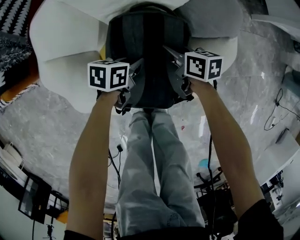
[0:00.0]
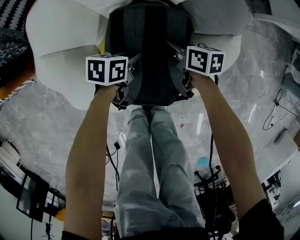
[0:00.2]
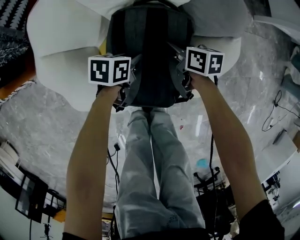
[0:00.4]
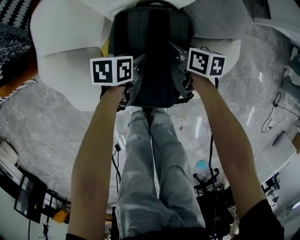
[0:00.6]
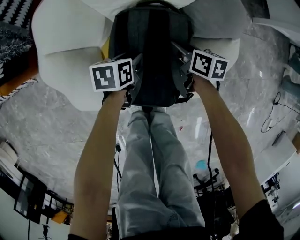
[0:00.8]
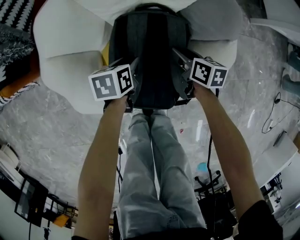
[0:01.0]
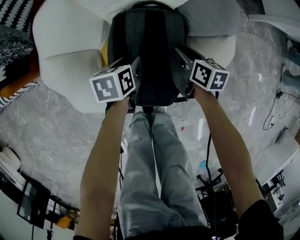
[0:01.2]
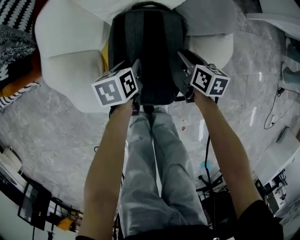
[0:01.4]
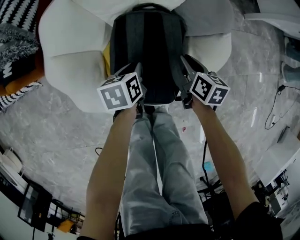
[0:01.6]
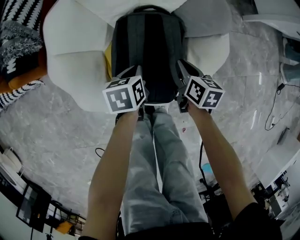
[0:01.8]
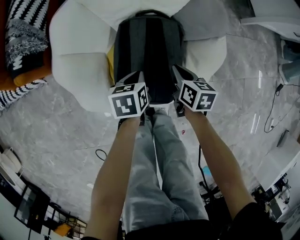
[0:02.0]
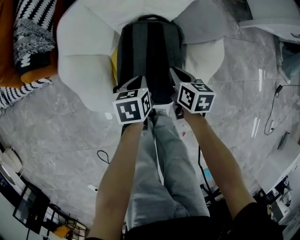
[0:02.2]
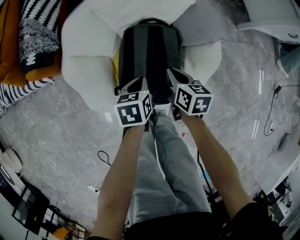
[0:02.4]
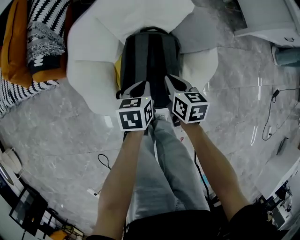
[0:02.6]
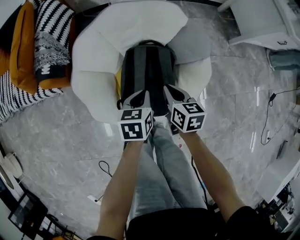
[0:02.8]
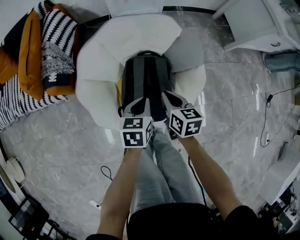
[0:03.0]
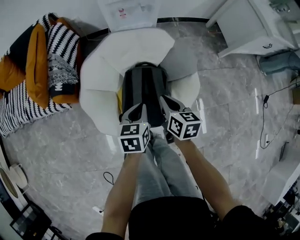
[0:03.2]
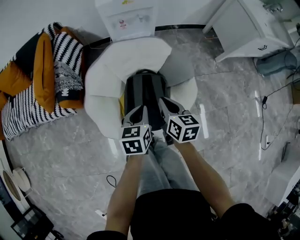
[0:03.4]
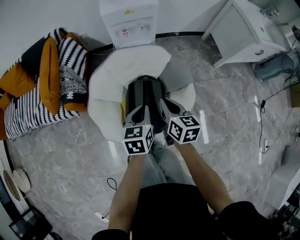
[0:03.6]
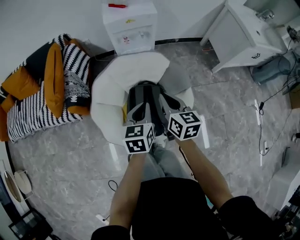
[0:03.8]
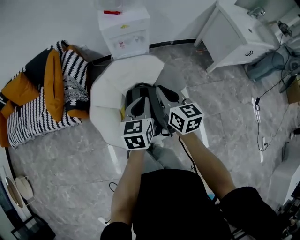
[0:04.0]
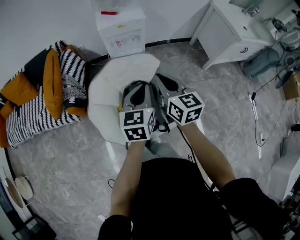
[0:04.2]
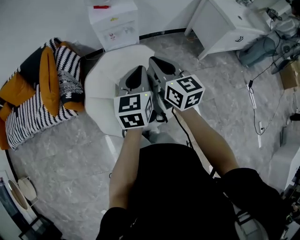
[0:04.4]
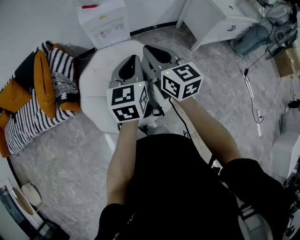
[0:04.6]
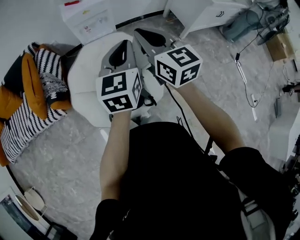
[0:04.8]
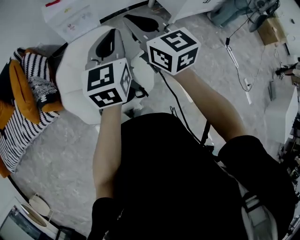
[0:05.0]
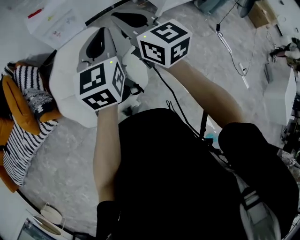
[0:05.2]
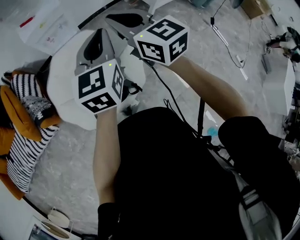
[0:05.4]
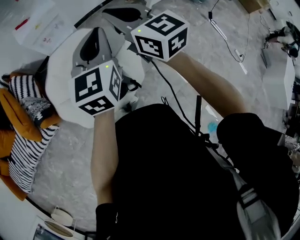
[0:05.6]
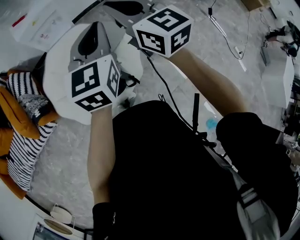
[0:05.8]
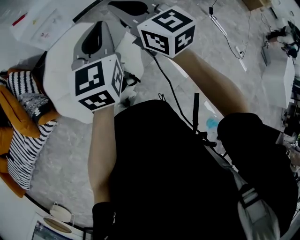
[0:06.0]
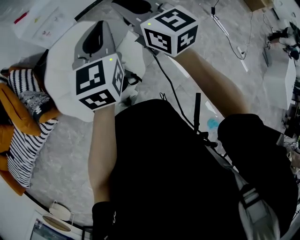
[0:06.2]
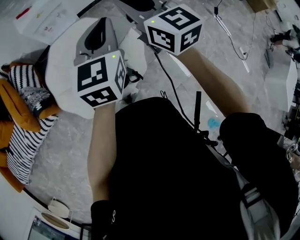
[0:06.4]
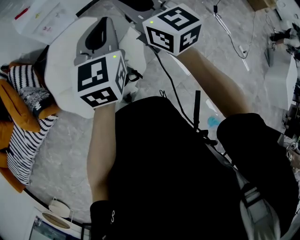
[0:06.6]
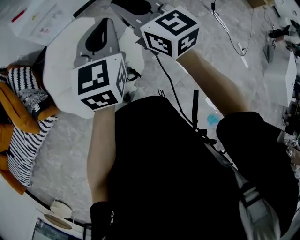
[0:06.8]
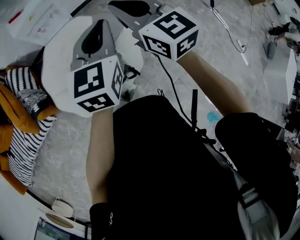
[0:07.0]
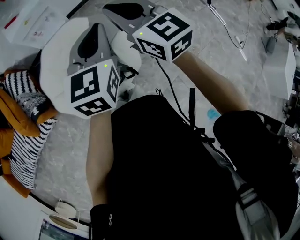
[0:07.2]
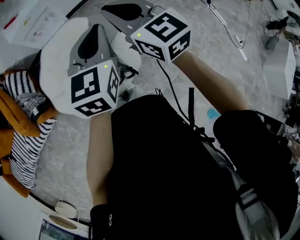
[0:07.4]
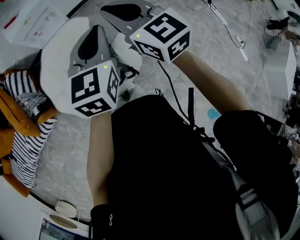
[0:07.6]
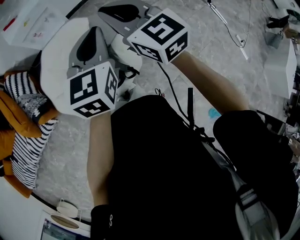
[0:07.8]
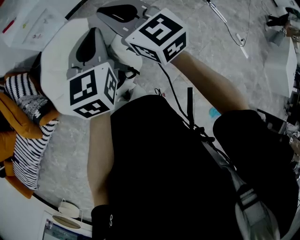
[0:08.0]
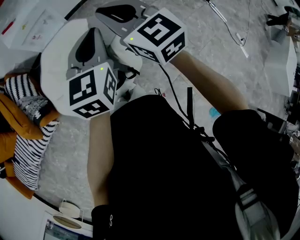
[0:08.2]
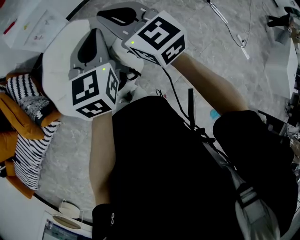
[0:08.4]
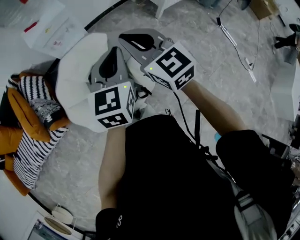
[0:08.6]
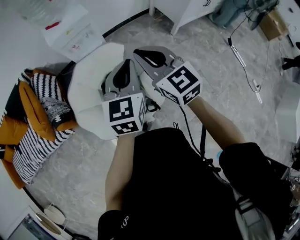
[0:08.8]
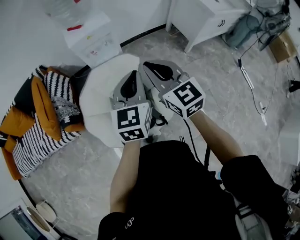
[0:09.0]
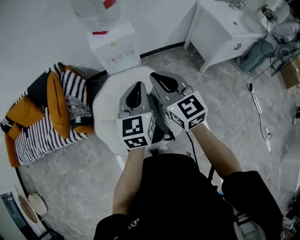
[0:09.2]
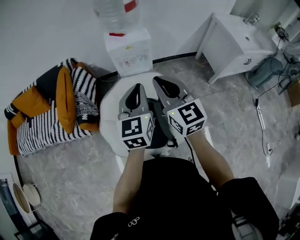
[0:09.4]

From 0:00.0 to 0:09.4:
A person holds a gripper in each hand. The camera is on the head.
From 0:00.0 to 0:01.6: The left gripper changes place by about 5 cm, turns by roughly 30 degrees, and opens and closes again. Meanwhile the right gripper moves to the right and backward, roughly 10 cm, and swivels some 20 degrees.
From 0:01.6 to 0:03.2: Both grippers travel together upward, about 30 cm. The left gripper changes its angle by about 20 degrees.
From 0:03.2 to 0:04.8: Both grippers move upward, approximately 35 cm. The right gripper swivels approximately 40 degrees. Meanwhile the left gripper tips its fingers upward by some 30 degrees.
From 0:04.8 to 0:06.2: Both grippers travel together to the right, approximately 5 cm.
From 0:06.2 to 0:07.8: The grippers make only small movements.
From 0:07.8 to 0:09.4: Both grippers travel together to the left and forward, approximately 15 cm. The left gripper turns by some 30 degrees.

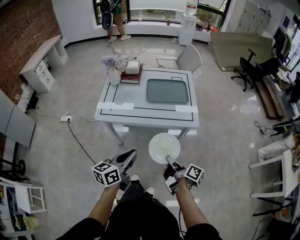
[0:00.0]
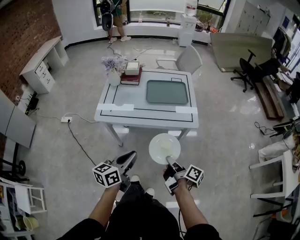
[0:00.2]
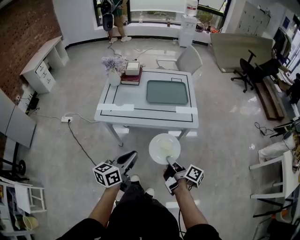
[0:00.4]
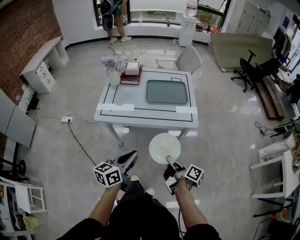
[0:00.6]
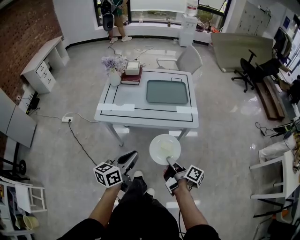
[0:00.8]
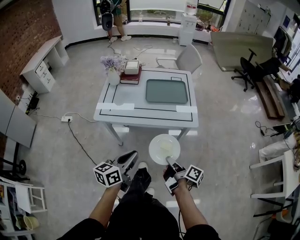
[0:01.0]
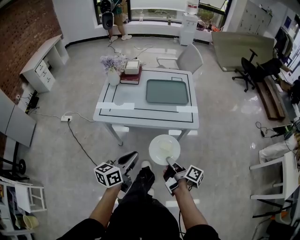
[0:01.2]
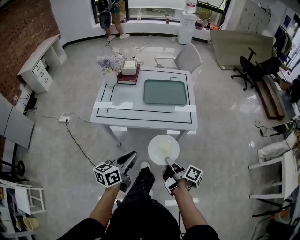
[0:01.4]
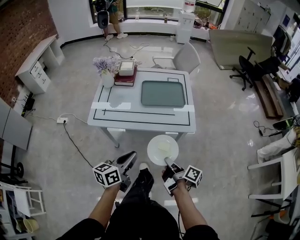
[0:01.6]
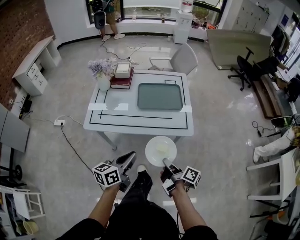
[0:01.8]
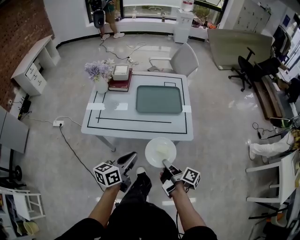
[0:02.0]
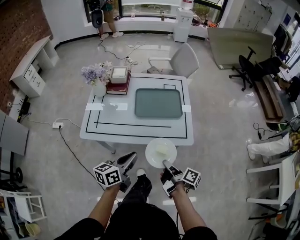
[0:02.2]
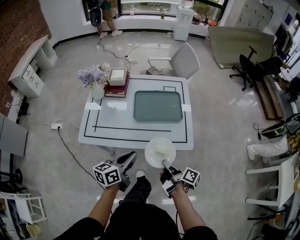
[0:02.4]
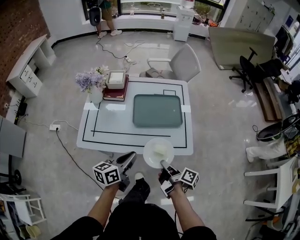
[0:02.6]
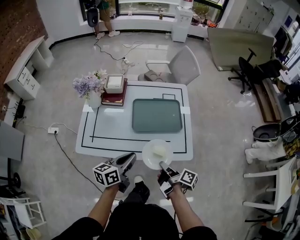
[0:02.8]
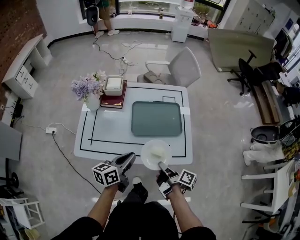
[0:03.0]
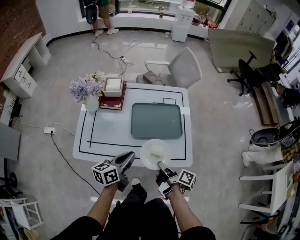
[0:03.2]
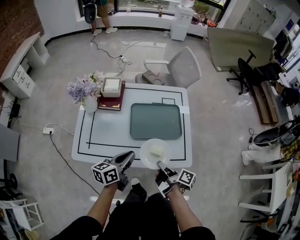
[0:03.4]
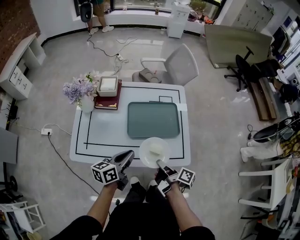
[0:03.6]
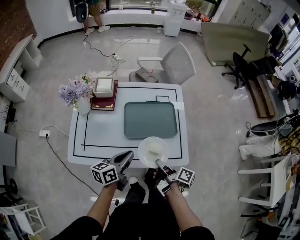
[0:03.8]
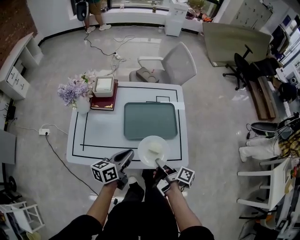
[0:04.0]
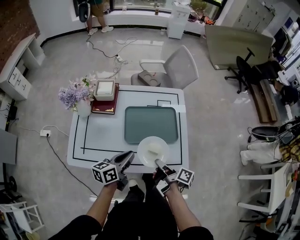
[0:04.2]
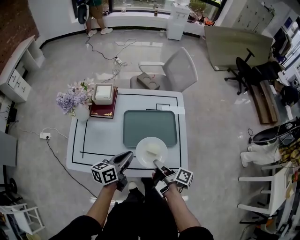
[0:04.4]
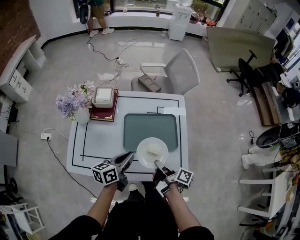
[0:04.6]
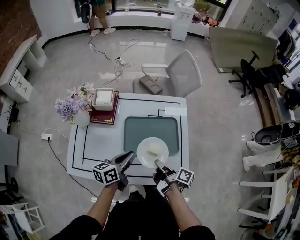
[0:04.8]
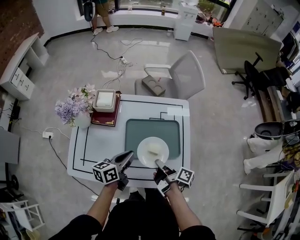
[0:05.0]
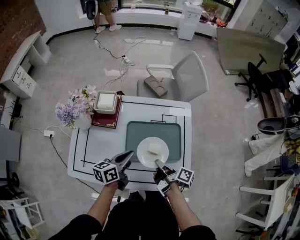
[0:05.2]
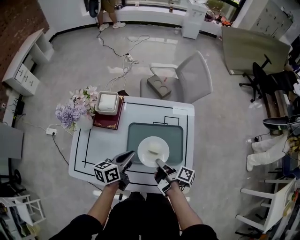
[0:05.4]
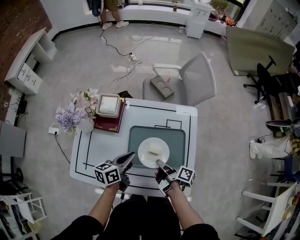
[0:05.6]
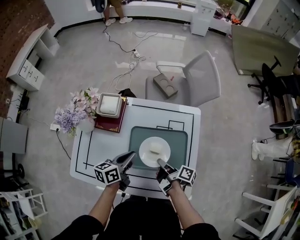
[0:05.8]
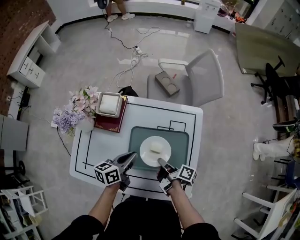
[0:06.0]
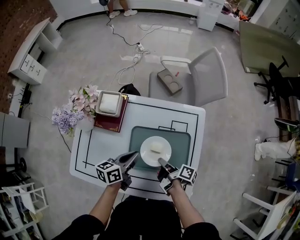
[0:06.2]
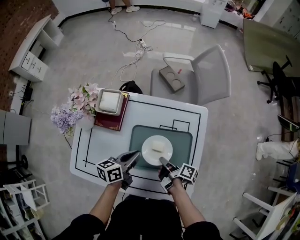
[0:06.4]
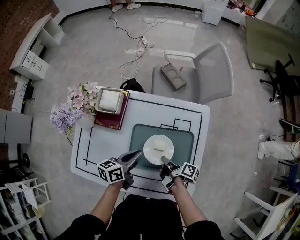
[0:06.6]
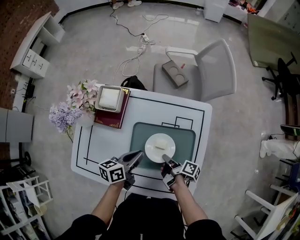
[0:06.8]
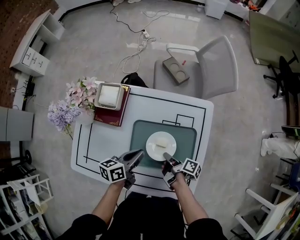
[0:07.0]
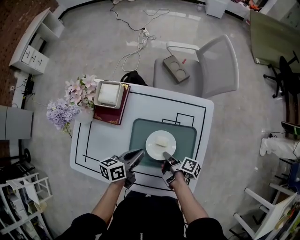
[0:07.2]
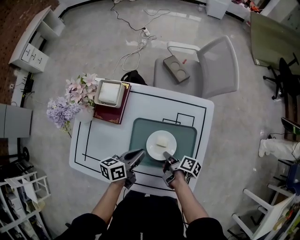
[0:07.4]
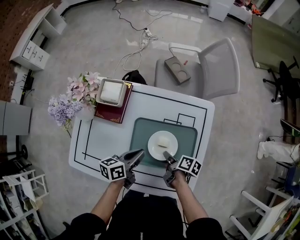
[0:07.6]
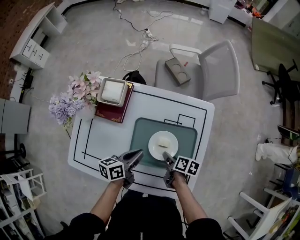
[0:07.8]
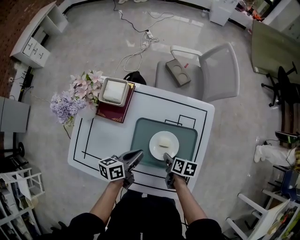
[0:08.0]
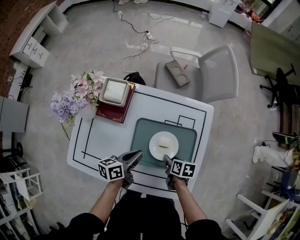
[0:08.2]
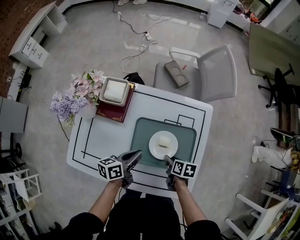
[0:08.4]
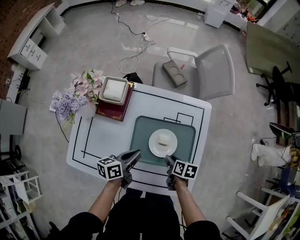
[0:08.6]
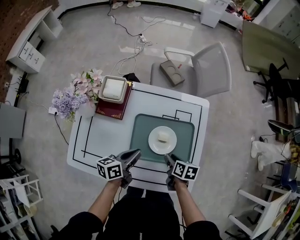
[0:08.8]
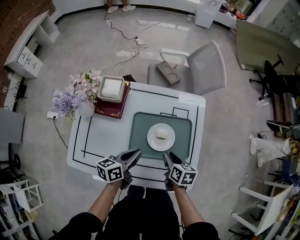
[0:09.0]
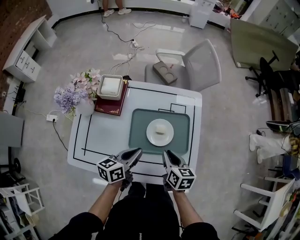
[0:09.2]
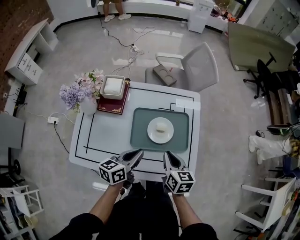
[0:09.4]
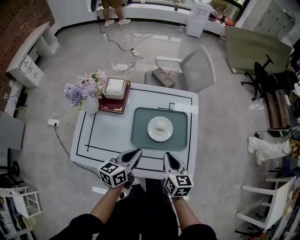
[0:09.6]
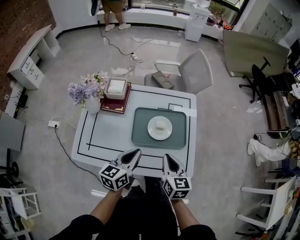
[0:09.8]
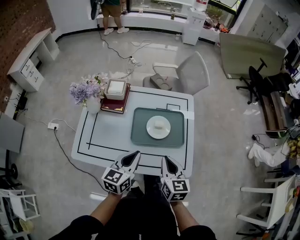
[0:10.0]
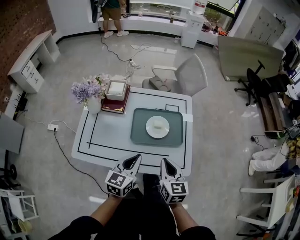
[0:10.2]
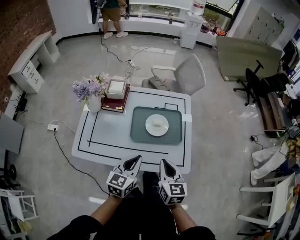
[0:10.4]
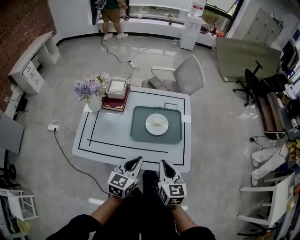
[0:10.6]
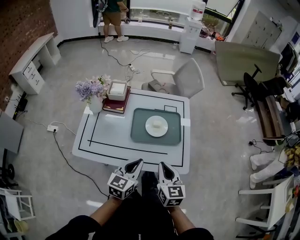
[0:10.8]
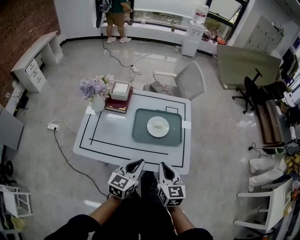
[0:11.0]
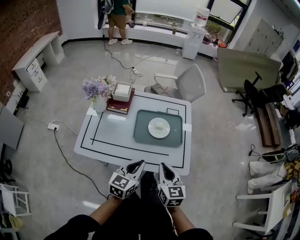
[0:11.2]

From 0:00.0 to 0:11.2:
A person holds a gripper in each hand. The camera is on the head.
From 0:00.0 to 0:01.6: The left gripper changes place by approximately 5 cm.
From 0:01.6 to 0:03.2: The left gripper moves about 25 cm.
From 0:03.2 to 0:04.8: The left gripper shifts by approximately 15 cm.
From 0:04.8 to 0:06.4: The left gripper moves some 15 cm.
From 0:08.0 to 0:09.6: The left gripper changes place by about 15 cm, and swivels approximately 20 degrees.
From 0:09.6 to 0:11.2: The left gripper shifts by approximately 15 cm, and swivels approximately 20 degrees.

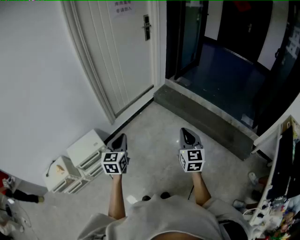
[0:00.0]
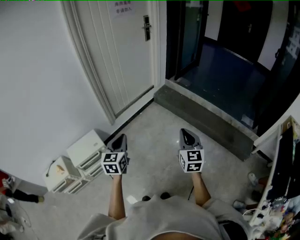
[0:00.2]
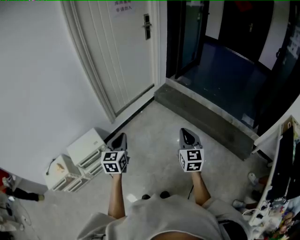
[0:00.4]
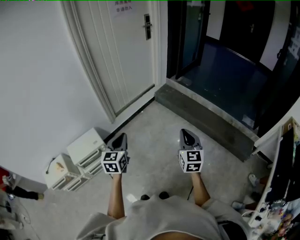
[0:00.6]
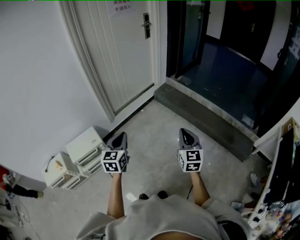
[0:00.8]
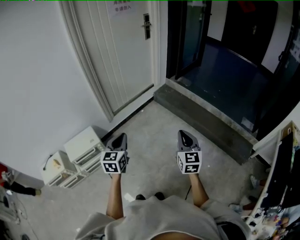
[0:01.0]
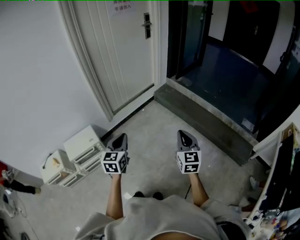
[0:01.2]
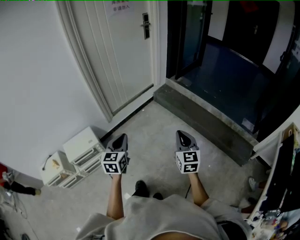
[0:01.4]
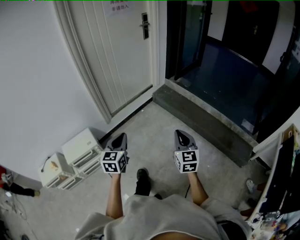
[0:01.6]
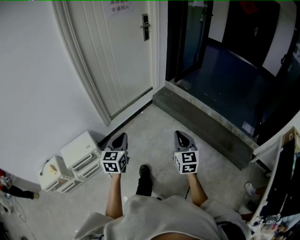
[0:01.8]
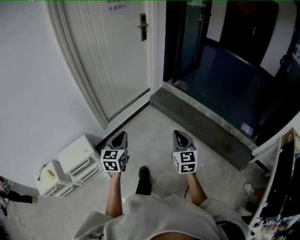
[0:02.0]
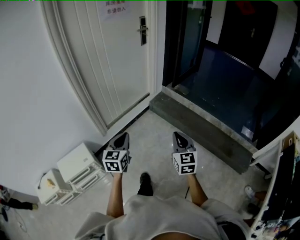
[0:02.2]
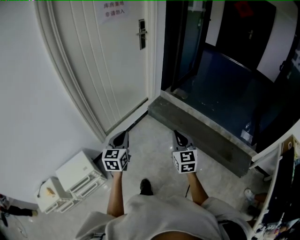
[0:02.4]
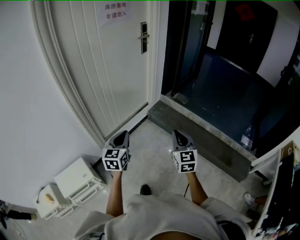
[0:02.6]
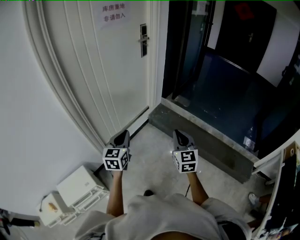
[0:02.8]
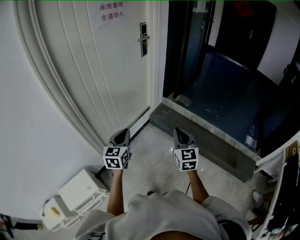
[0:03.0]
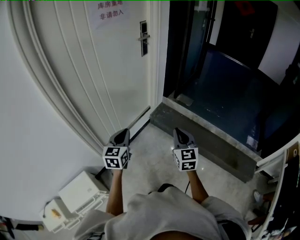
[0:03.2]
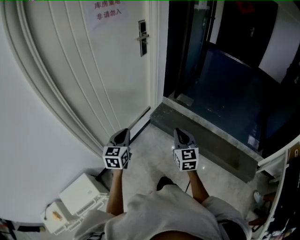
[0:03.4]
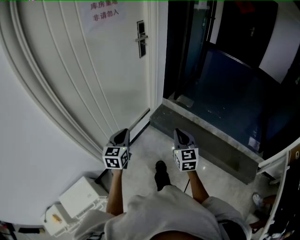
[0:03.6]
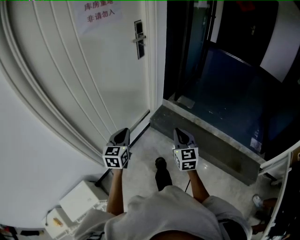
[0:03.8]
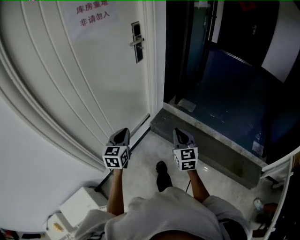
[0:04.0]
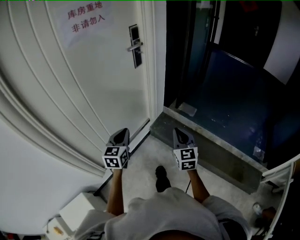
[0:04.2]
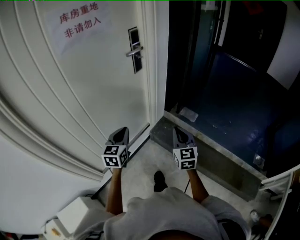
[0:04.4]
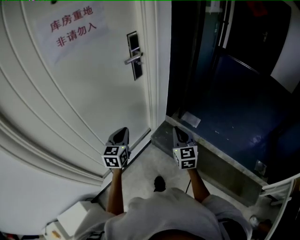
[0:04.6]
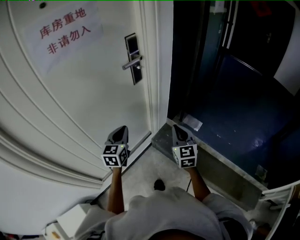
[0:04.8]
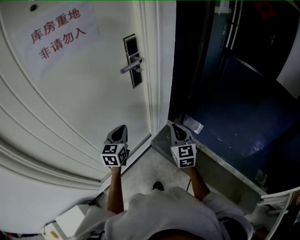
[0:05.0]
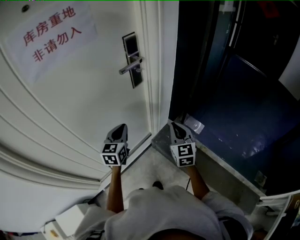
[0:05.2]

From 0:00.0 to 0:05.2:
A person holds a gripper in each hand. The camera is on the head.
From 0:00.0 to 0:01.8: The right gripper shifts some 10 cm forward. The left gripper heads to the right and forward, covering some 10 cm.
From 0:01.8 to 0:03.4: The pair of grippers is taken forward, approximately 40 cm.
From 0:03.4 to 0:05.2: The two grippers travel together, forward, about 50 cm.
